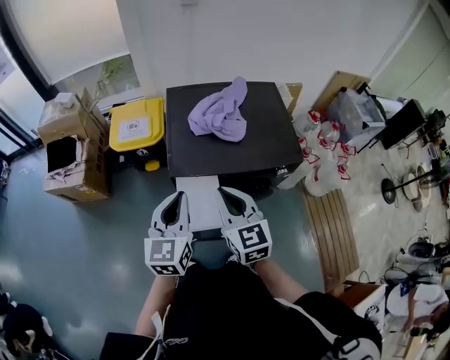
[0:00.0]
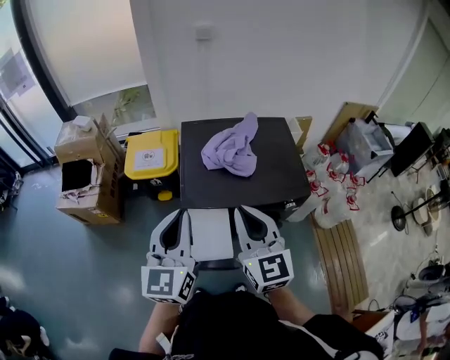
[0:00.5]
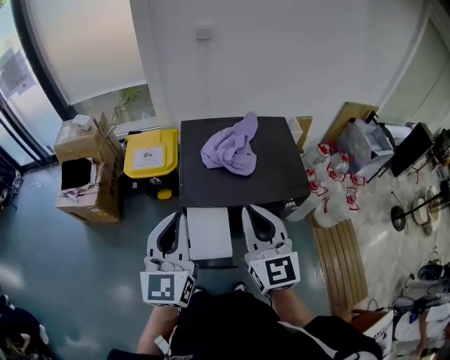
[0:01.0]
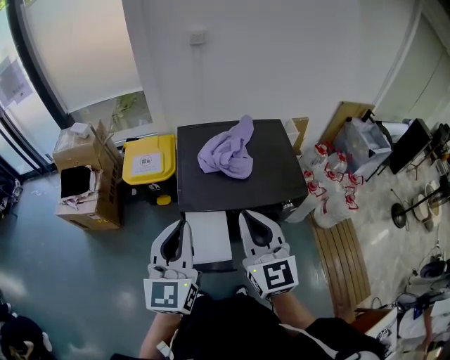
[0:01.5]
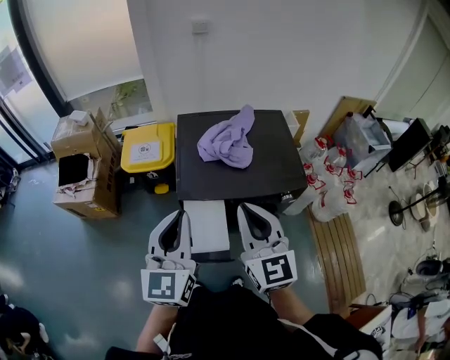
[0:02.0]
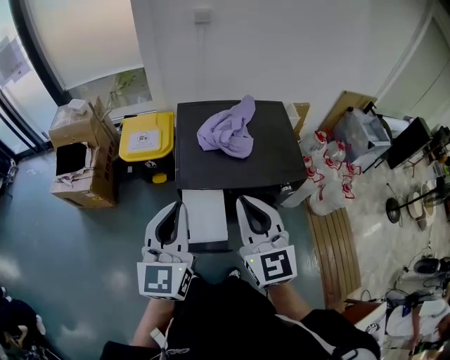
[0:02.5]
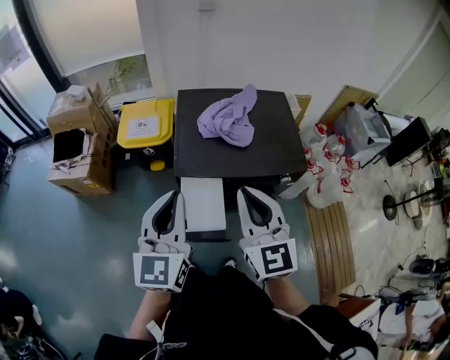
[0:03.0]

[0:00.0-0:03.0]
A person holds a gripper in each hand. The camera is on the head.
0:00.0 to 0:01.5: Both grippers travel together upward, roughly 10 cm.
0:01.5 to 0:03.0: The grippers make only small movements.

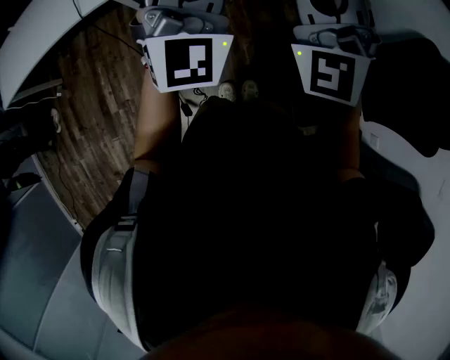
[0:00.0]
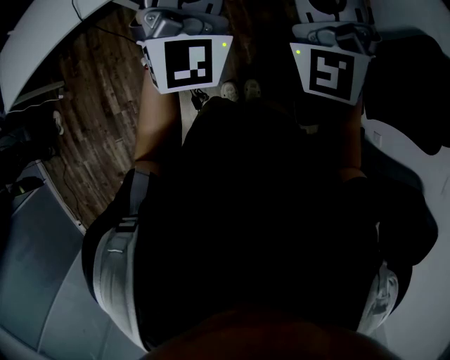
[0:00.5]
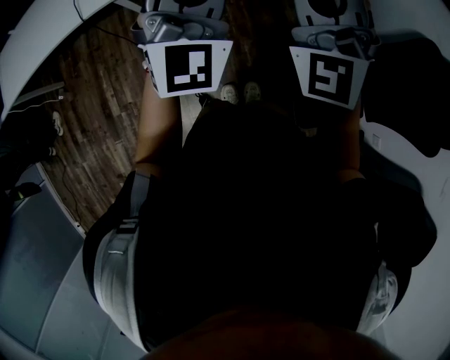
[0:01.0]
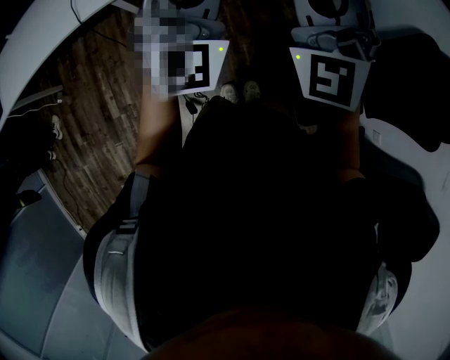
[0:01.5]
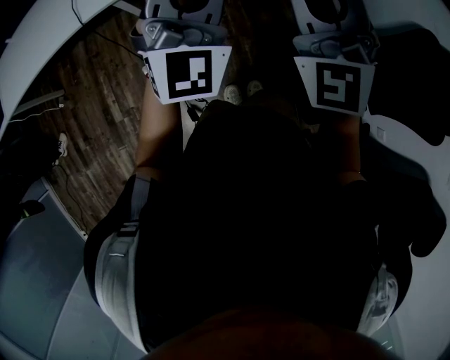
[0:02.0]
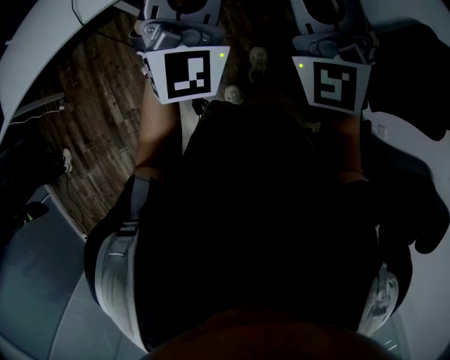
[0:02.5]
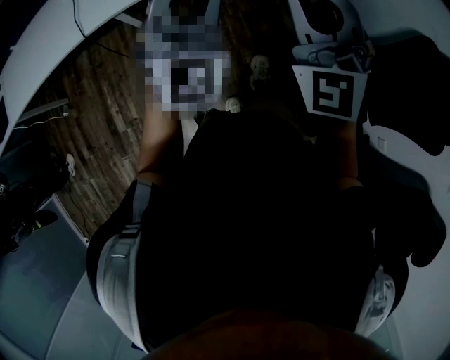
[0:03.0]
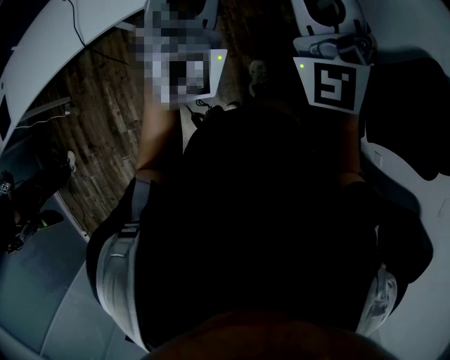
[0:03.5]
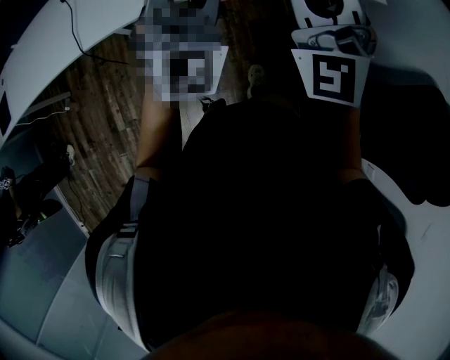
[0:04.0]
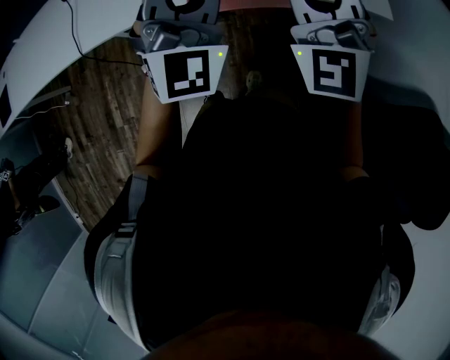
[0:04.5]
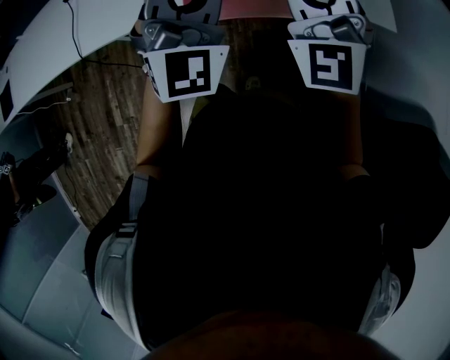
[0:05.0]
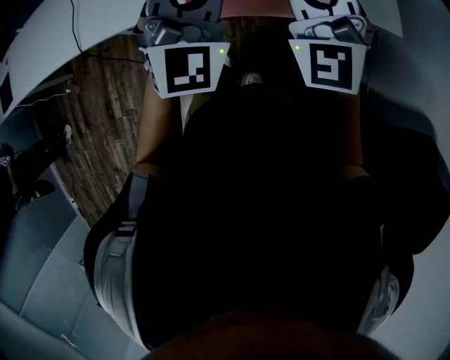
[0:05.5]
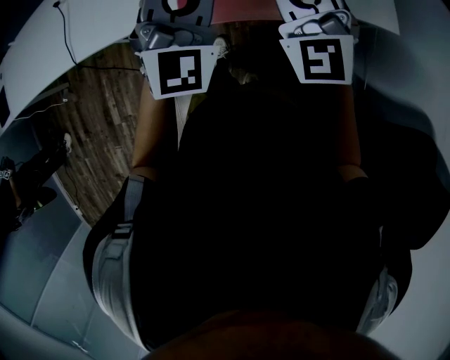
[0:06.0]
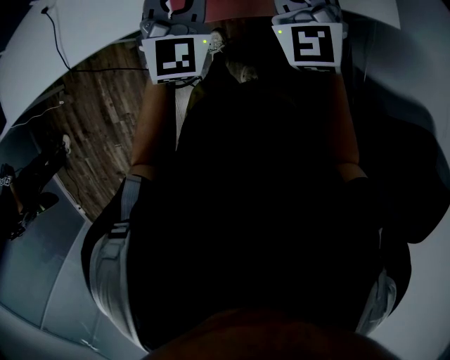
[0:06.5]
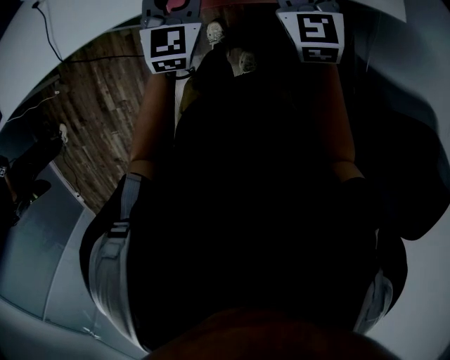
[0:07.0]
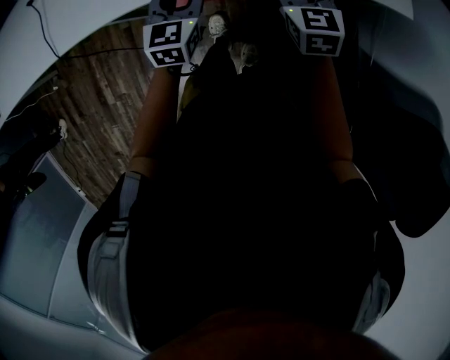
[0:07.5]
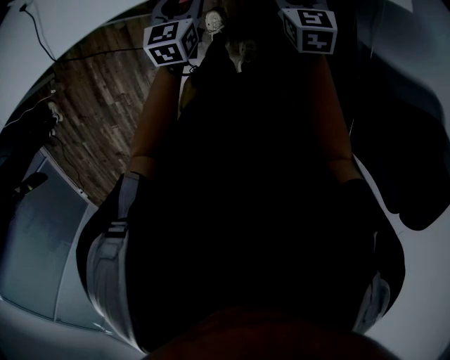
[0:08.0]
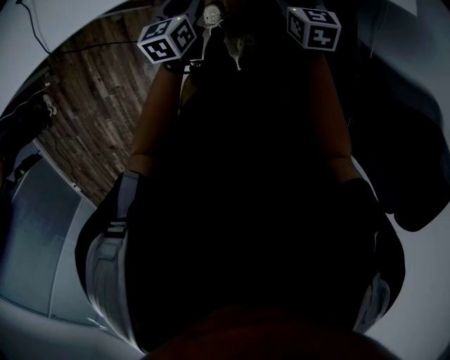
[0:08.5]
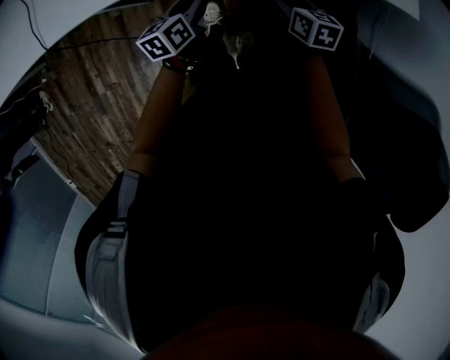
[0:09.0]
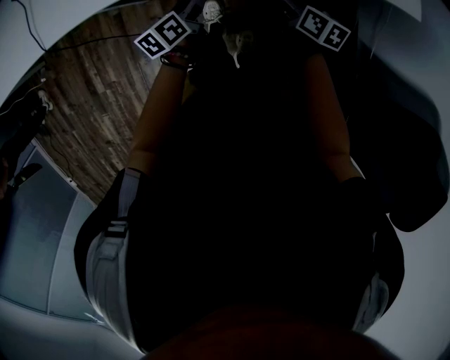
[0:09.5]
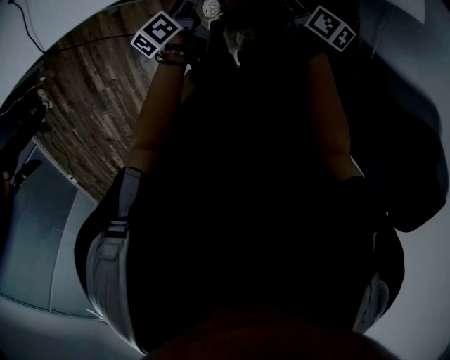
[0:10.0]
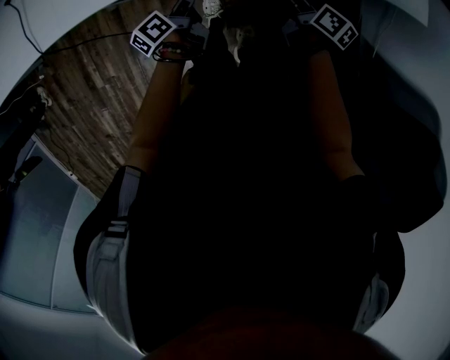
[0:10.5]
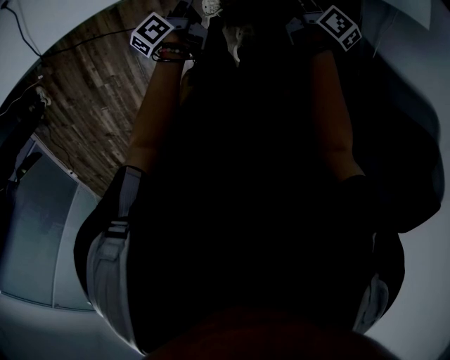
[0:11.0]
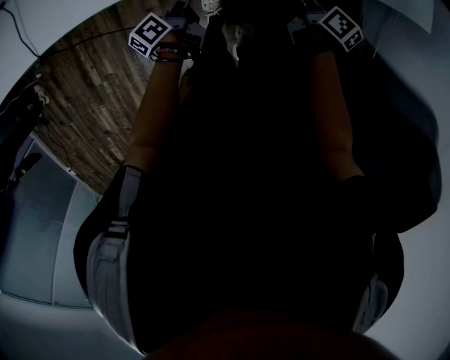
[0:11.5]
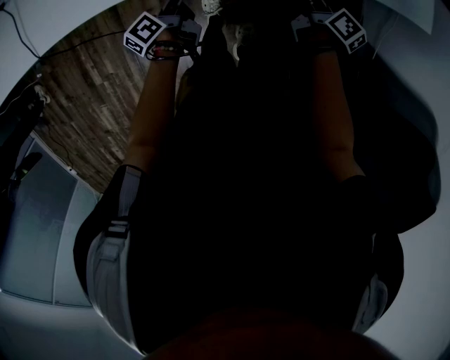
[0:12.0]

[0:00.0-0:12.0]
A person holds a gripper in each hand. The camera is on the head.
0:00.0 to 0:02.0: The grippers stay close to where they were, moving slightly.
0:02.0 to 0:04.0: The two grippers go about 20 cm forward.
0:04.0 to 0:06.0: The left gripper shifts roughly 15 cm forward, to the right and downward, while the right gripper moves forward and downward, some 20 cm.
0:06.0 to 0:08.0: Both grippers move downward, approximately 30 cm. The right gripper angles its fingers downward, by roughly 30 degrees, and opens. Meanwhile the left gripper twists some 50 degrees counterclockwise, seen from behind, and opens up.
0:08.0 to 0:10.0: Both grippers move downward, approximately 10 cm. The left gripper rolls counterclockwise, seen from behind, by roughly 50 degrees. Meanwhile the right gripper twists roughly 50 degrees clockwise, seen from behind.
0:10.0 to 0:12.0: The right gripper heads to the right, covering some 5 cm.

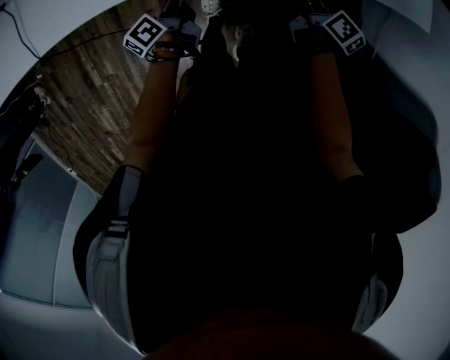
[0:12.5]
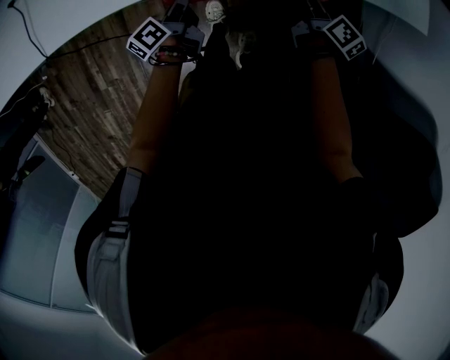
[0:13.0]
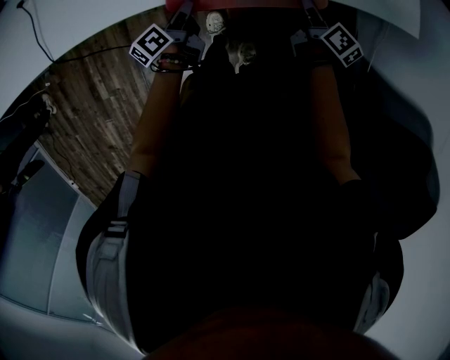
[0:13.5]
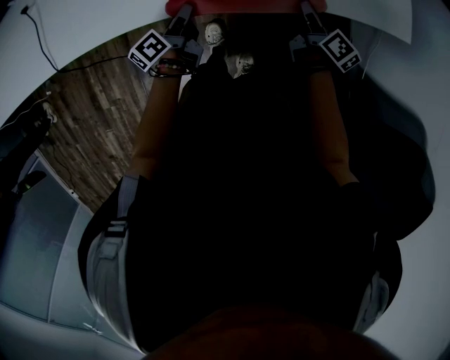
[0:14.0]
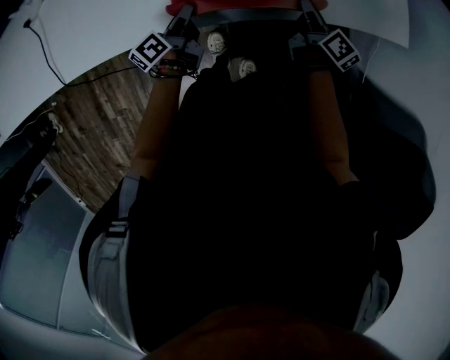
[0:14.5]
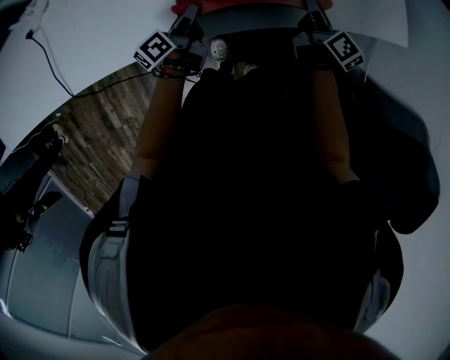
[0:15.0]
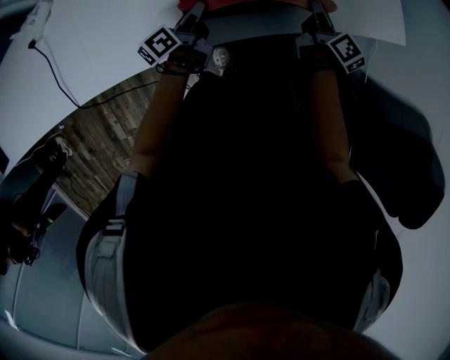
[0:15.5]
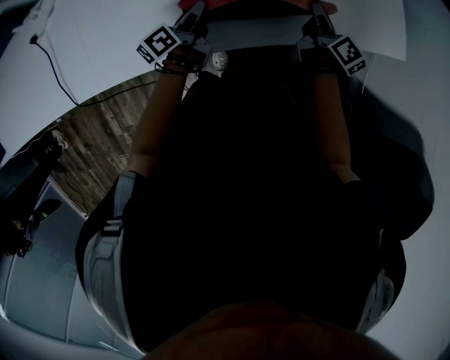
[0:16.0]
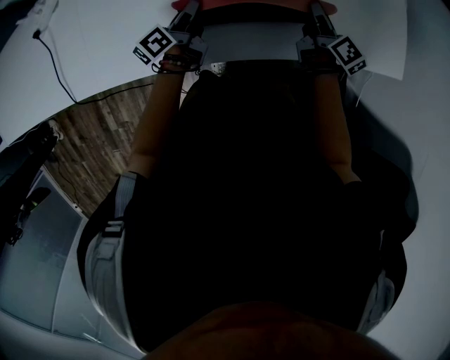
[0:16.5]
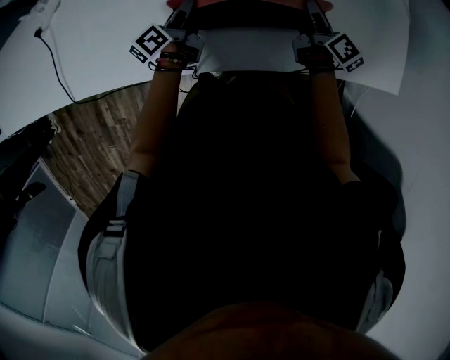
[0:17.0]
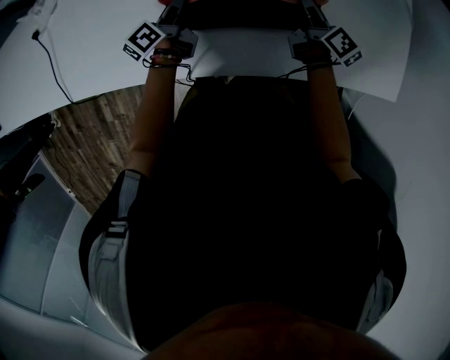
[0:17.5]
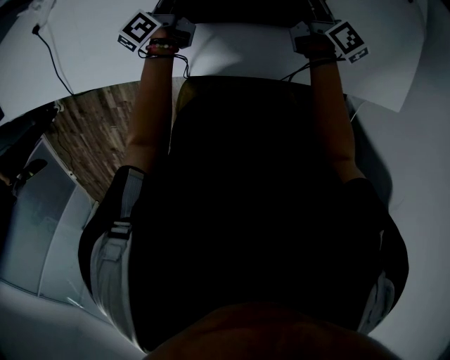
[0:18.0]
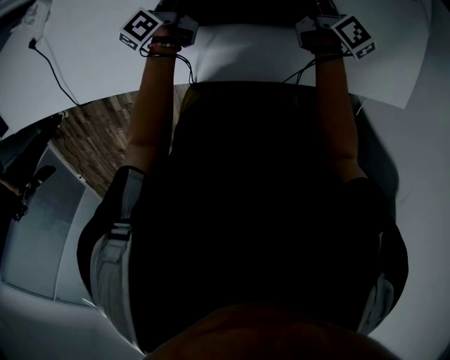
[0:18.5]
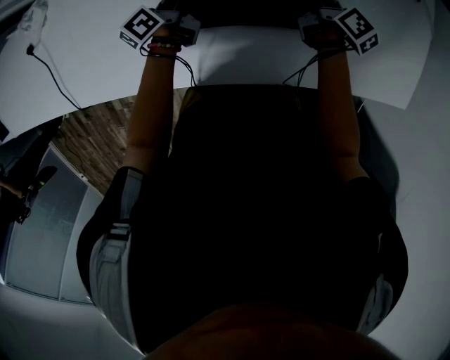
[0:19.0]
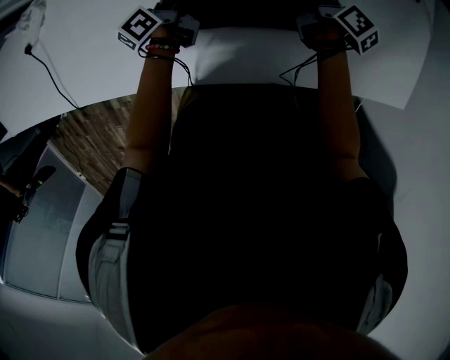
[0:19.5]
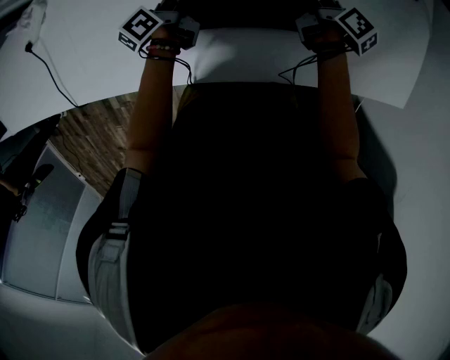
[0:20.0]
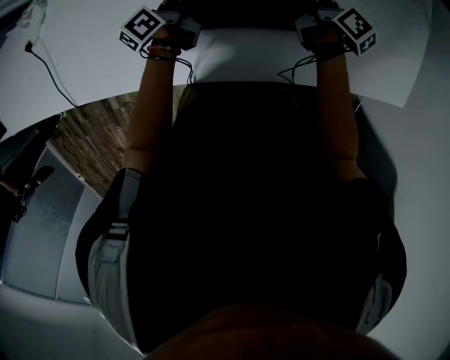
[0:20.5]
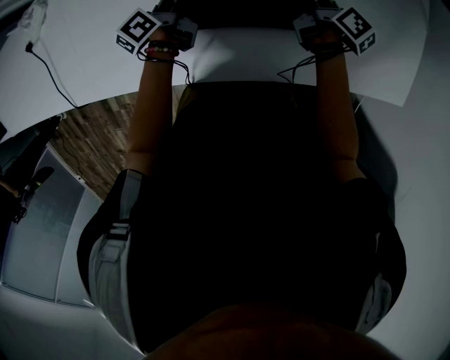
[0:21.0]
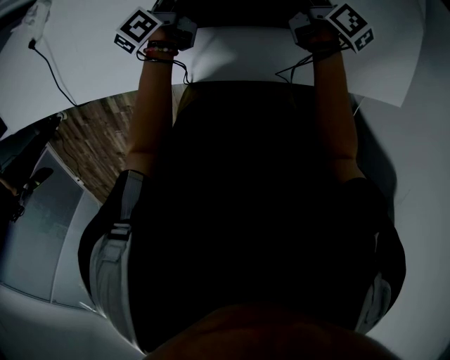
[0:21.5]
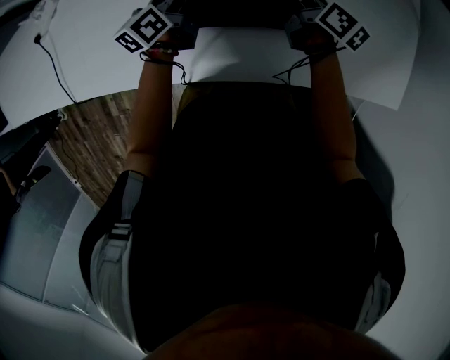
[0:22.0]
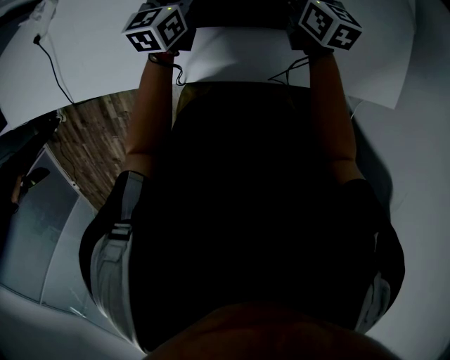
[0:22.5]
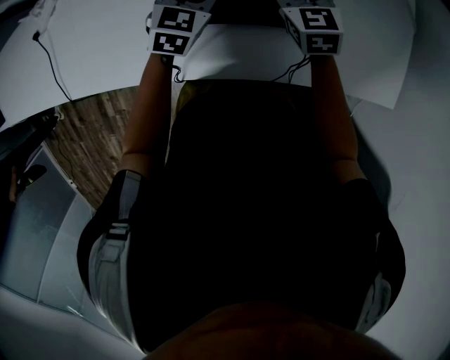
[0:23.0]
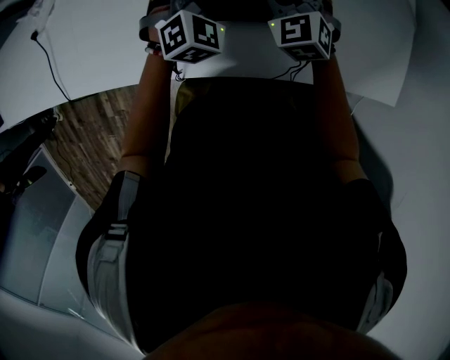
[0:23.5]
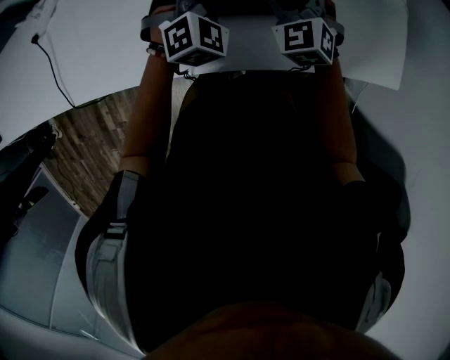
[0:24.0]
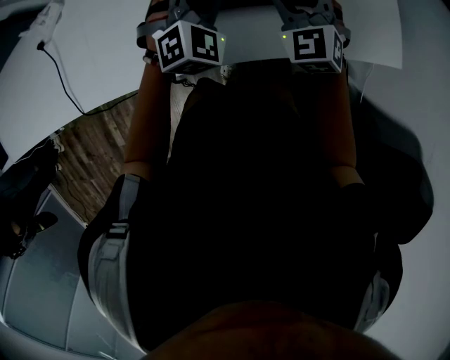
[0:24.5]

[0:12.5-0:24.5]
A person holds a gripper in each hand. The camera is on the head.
0:12.5 to 0:14.5: The grippers stay close to where they were, moving slightly.
0:14.5 to 0:16.5: The right gripper is displaced forward by some 15 cm, while the left gripper travels forward and to the left by approximately 15 cm.
0:16.5 to 0:18.5: The grippers both shift forward by roughly 15 cm.
0:18.5 to 0:20.5: The left gripper opens up. The right gripper opens its fingers.
0:20.5 to 0:22.5: The right gripper moves upward, roughly 10 cm, and rolls counterclockwise, seen from behind, by approximately 50 degrees, while the left gripper goes some 10 cm upward and to the right, and twists roughly 50 degrees clockwise, seen from behind.
0:22.5 to 0:24.5: The left gripper heads backward and upward, covering about 15 cm, twists some 70 degrees clockwise, seen from behind, and closes its fingers, while the right gripper goes some 20 cm backward, upward and to the left, and twists roughly 60 degrees counterclockwise, seen from behind.
